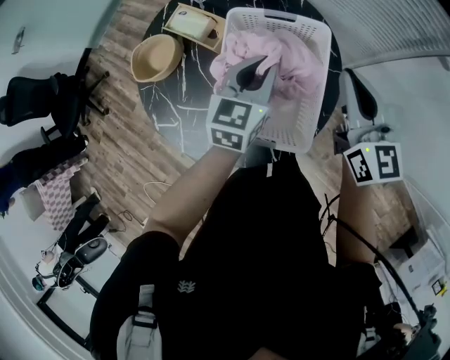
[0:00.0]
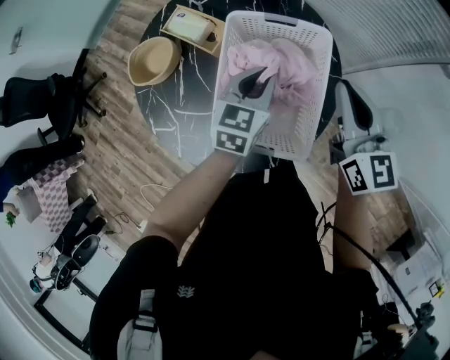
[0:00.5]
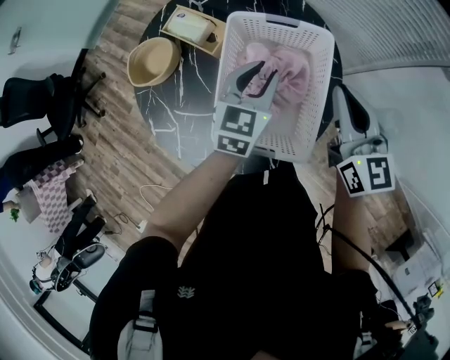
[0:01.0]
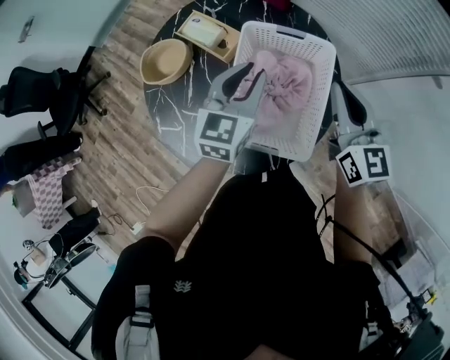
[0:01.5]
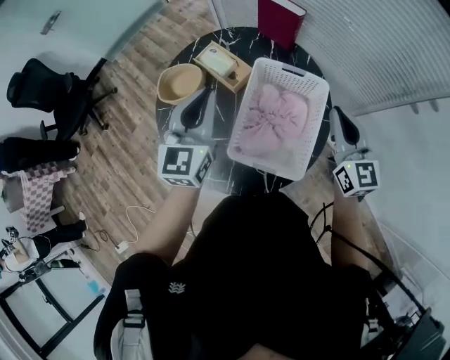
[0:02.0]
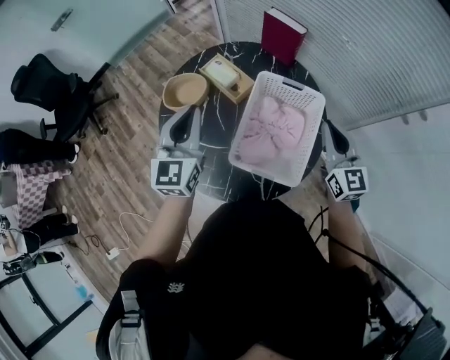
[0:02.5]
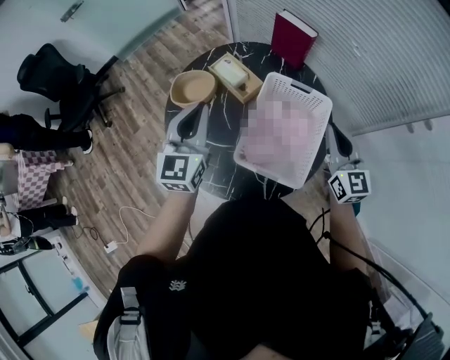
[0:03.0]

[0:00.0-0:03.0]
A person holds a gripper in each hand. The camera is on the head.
0:00.0 to 0:01.5: The left gripper travels to the left by approximately 5 cm.
0:01.5 to 0:03.0: The left gripper goes about 20 cm to the left and upward, and swivels roughly 20 degrees.

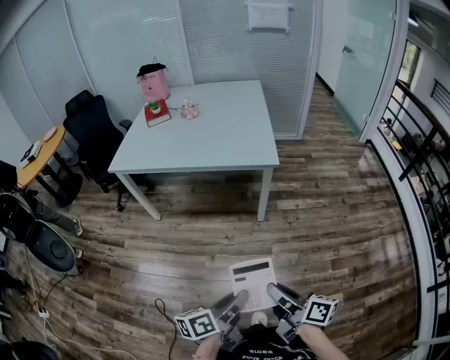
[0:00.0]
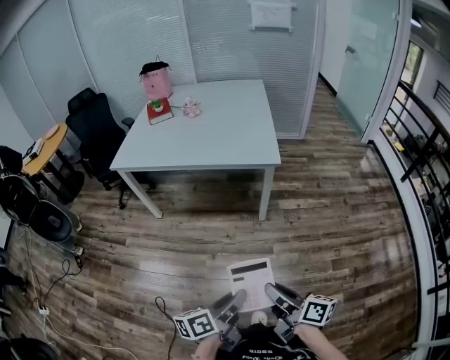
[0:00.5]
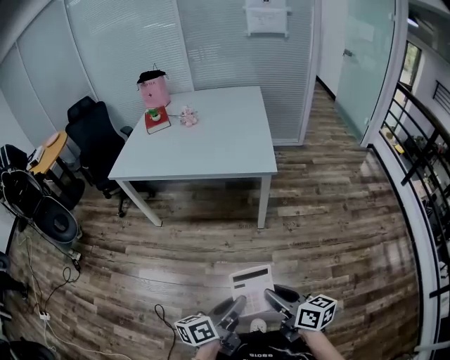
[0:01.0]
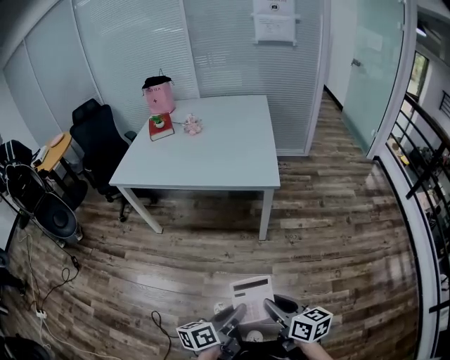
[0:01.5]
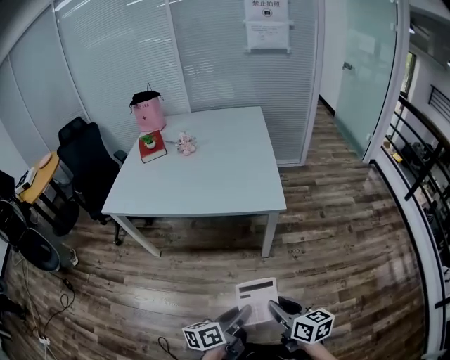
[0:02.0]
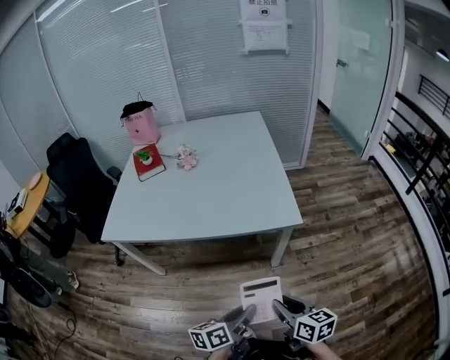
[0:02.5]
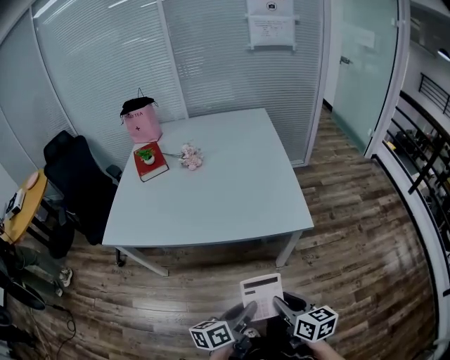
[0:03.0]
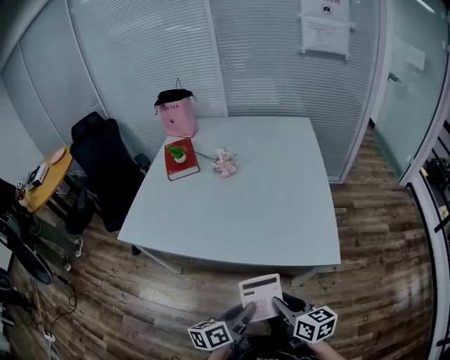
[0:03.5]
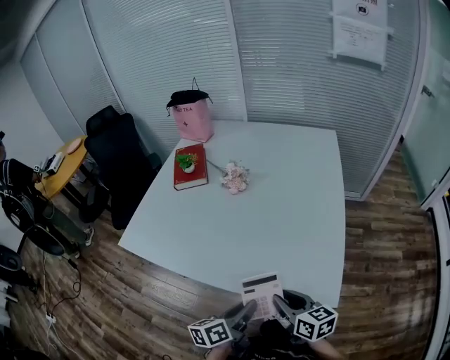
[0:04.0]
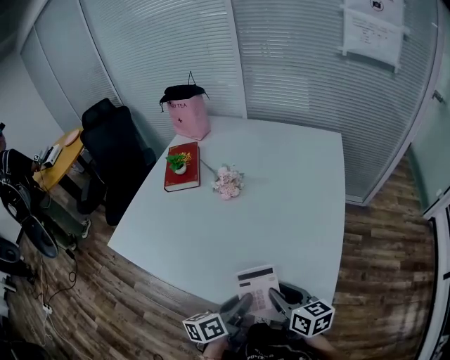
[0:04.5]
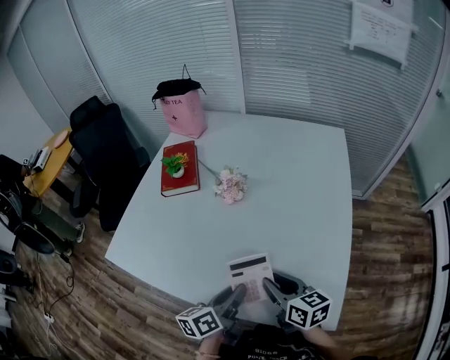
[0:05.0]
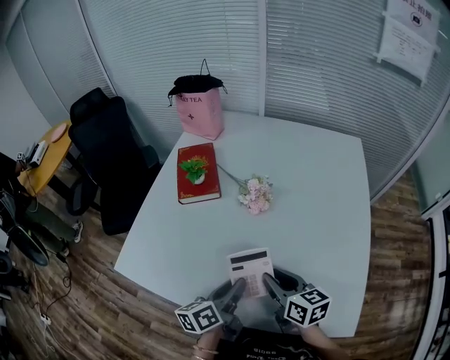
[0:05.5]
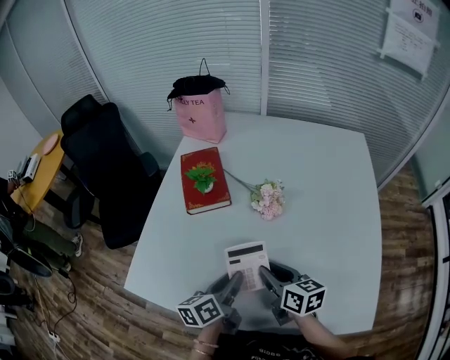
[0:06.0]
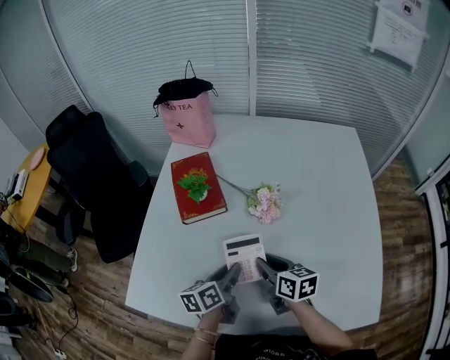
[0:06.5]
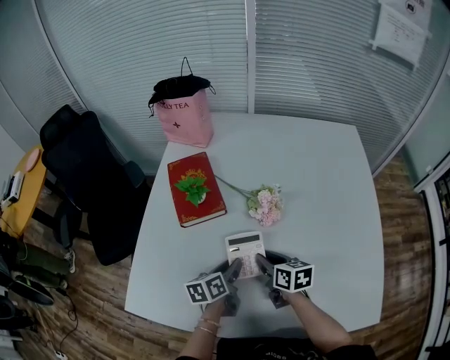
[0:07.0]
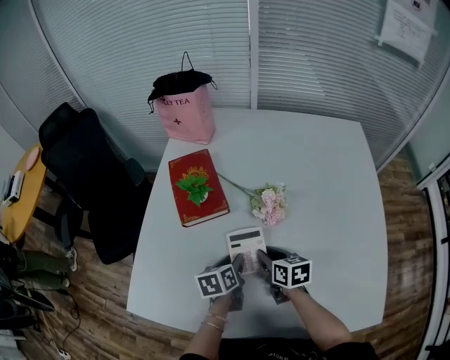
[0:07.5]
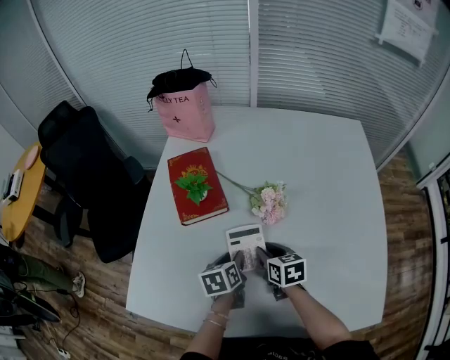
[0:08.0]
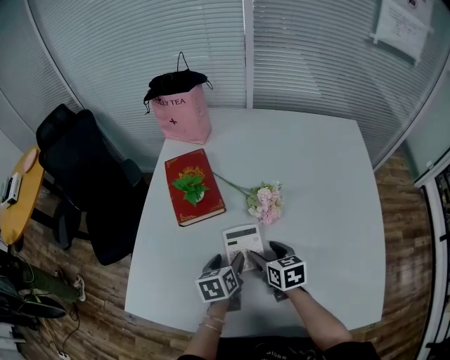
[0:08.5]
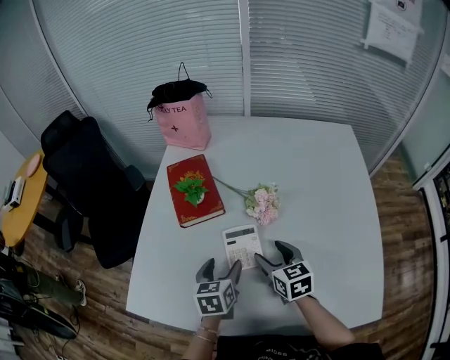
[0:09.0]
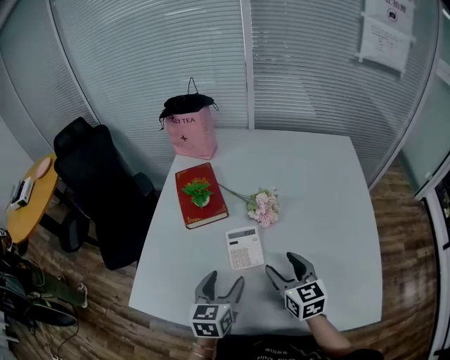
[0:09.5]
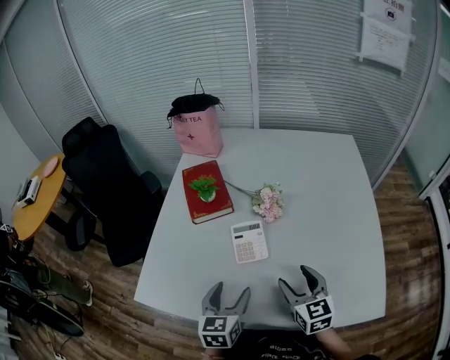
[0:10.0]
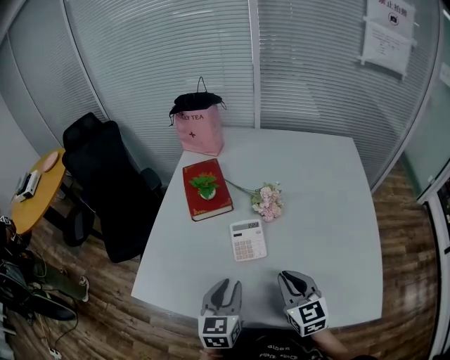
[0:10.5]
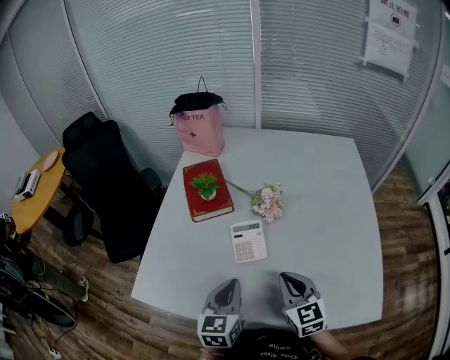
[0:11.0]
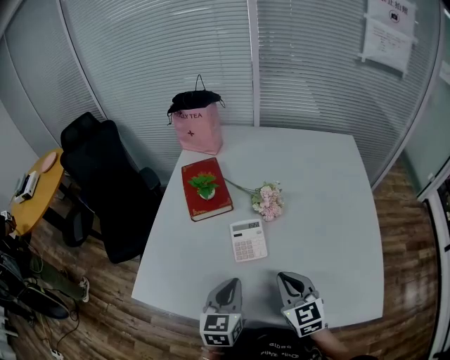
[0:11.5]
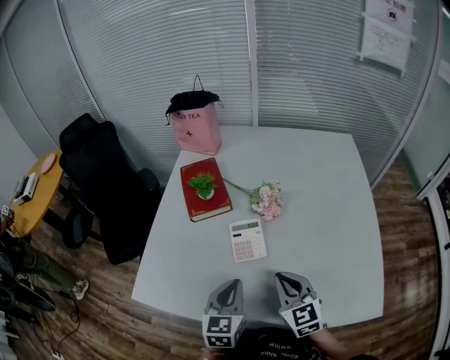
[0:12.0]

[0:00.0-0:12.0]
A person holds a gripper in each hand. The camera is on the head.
0:00.0 to 0:02.0: The two grippers go about 20 cm forward. The right gripper swivels approximately 30 degrees.
0:02.0 to 0:04.0: The pair of grippers is taken forward, roughly 50 cm.
0:04.0 to 0:06.0: The two grippers go approximately 35 cm forward and to the left.
0:06.0 to 0:08.0: The grippers both shift forward and downward by about 15 cm. The left gripper changes its angle by some 30 degrees.
0:08.0 to 0:10.0: Both grippers travel together backward and upward, some 20 cm. The right gripper changes its angle by roughly 30 degrees, and opens its fingers. The left gripper rotates some 30 degrees, and opens its fingers.
0:10.0 to 0:12.0: The left gripper closes its fingers. Meanwhile the right gripper closes its fingers.

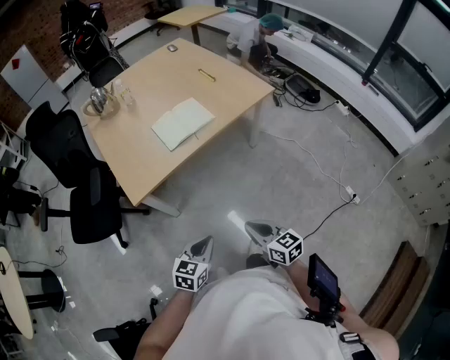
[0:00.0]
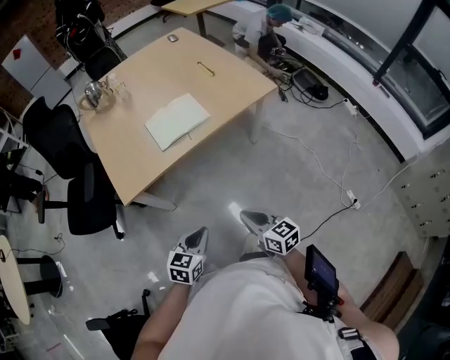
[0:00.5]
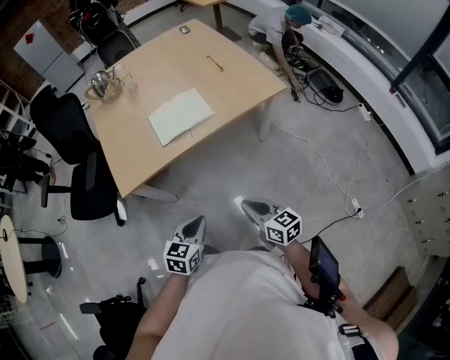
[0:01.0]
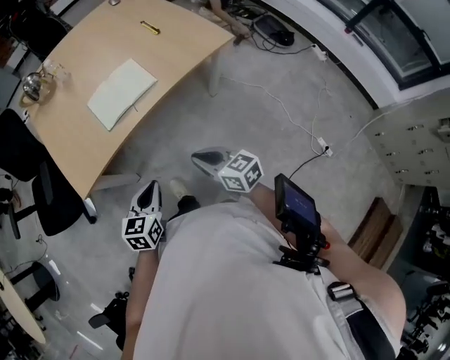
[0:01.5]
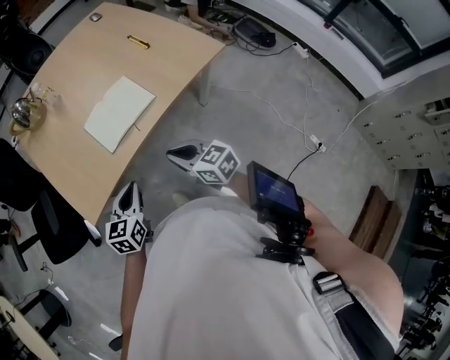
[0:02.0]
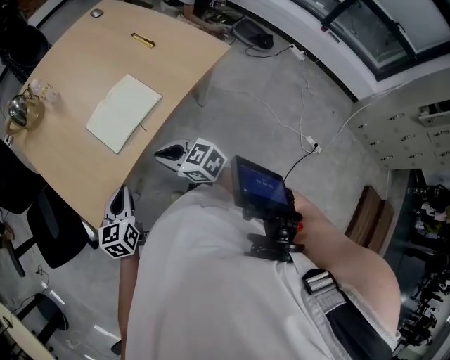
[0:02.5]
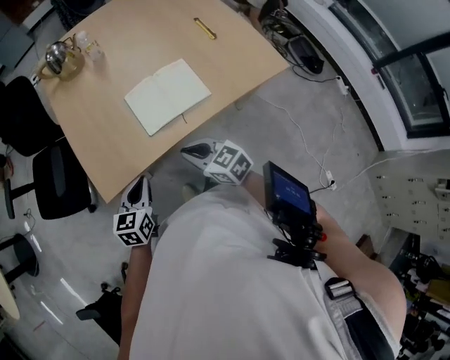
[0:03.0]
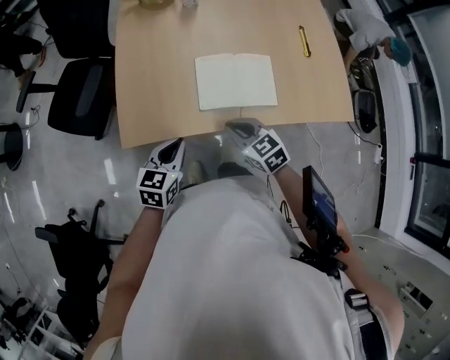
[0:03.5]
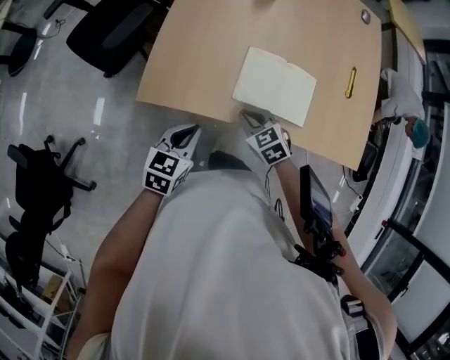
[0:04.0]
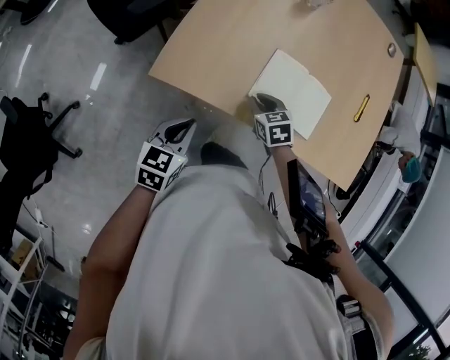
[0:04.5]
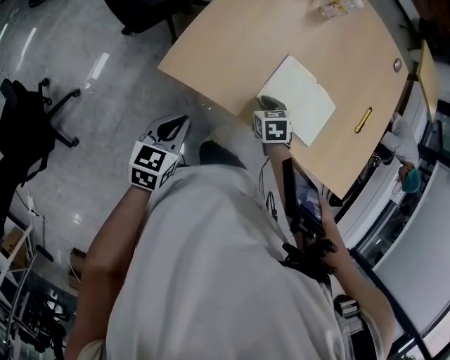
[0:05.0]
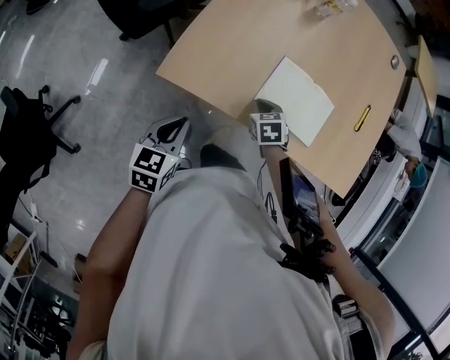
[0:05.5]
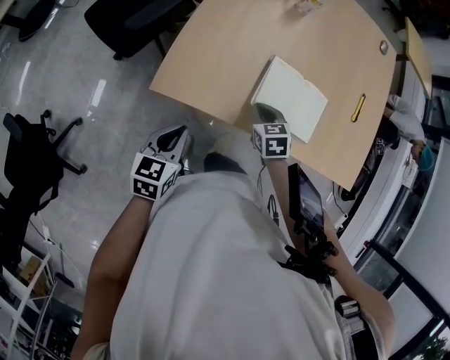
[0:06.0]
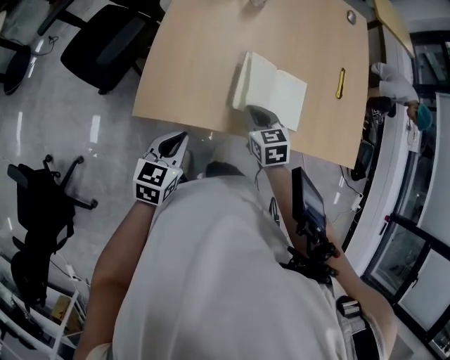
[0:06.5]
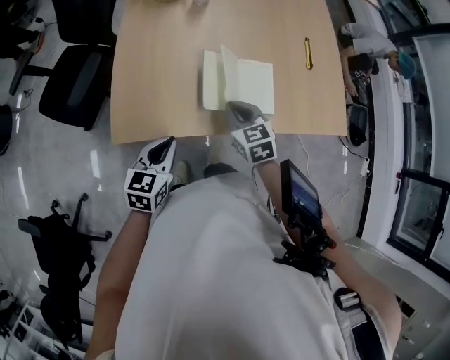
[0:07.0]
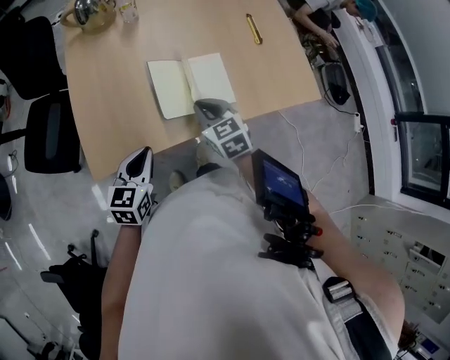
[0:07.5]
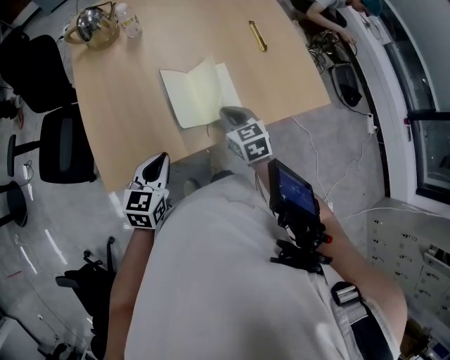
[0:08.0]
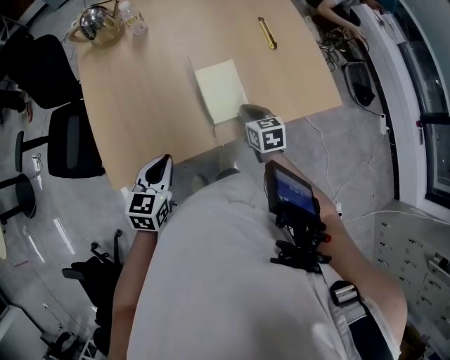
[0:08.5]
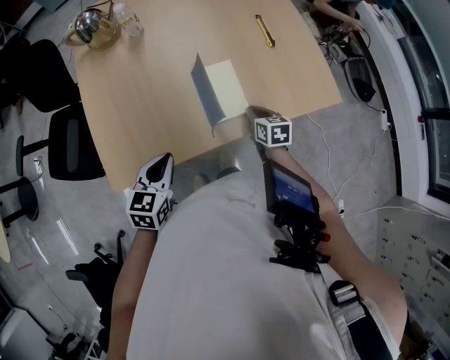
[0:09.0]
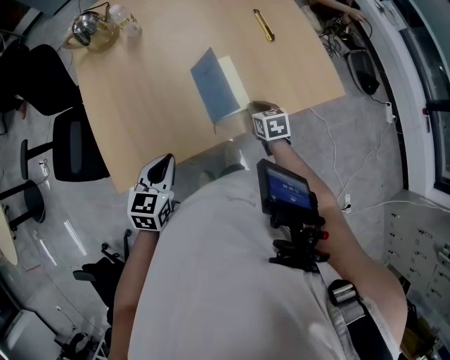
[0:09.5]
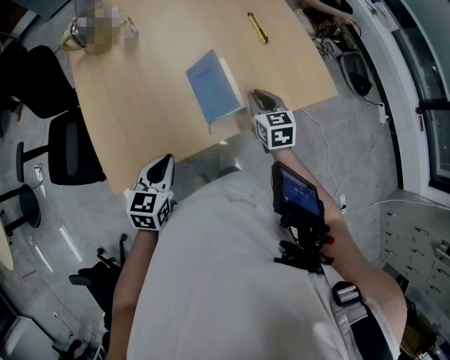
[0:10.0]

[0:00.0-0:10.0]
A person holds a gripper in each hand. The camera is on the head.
0:00.0 to 0:02.0: The grippers both shift forward by roughly 25 cm.
0:02.0 to 0:04.0: The left gripper moves roughly 10 cm, and changes its angle by roughly 30 degrees, while the right gripper shifts by roughly 20 cm, and angles its fingers downward, by roughly 30 degrees.
0:04.0 to 0:06.0: The right gripper heads forward, covering about 5 cm. Meanwhile the left gripper goes roughly 10 cm to the left.
0:06.0 to 0:08.0: The right gripper is displaced to the right and upward by roughly 15 cm, and rotates approximately 30 degrees; the left gripper shifts some 15 cm to the right and forward, and swivels approximately 30 degrees.
0:08.0 to 0:10.0: The right gripper moves to the right, some 10 cm, and reaches roughly 10 cm downward, then returns.

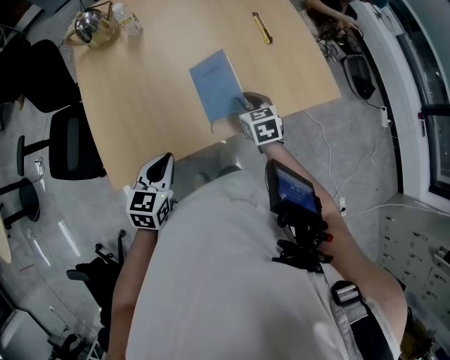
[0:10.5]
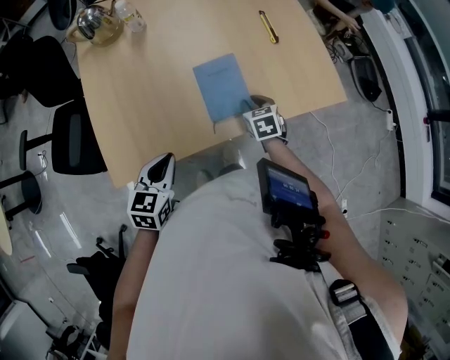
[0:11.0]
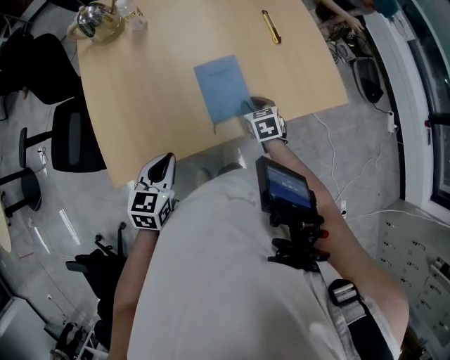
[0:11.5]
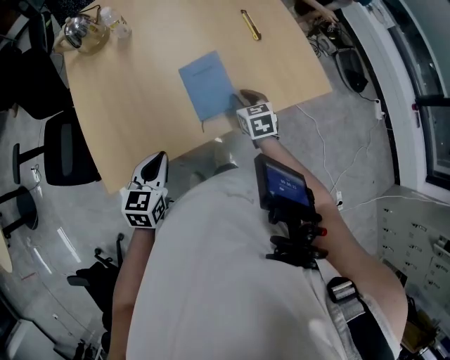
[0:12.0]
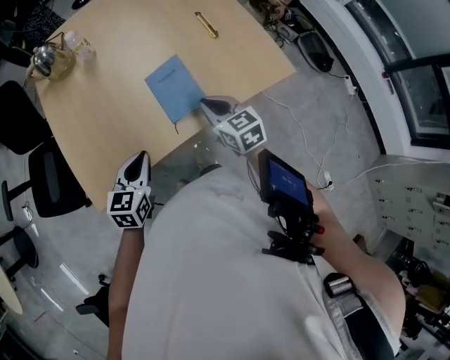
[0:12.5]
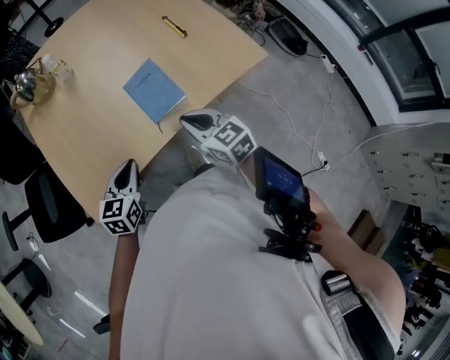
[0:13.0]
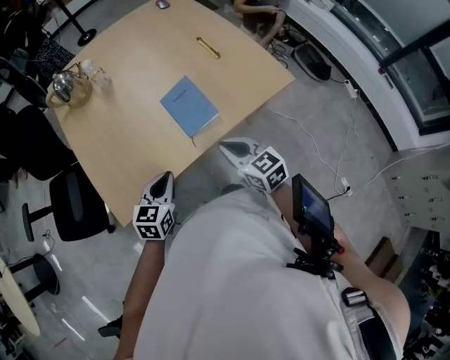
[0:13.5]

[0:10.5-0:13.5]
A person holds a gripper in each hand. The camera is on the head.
0:12.0 to 0:13.5: The right gripper is displaced backward and upward by approximately 20 cm, and closes up.
